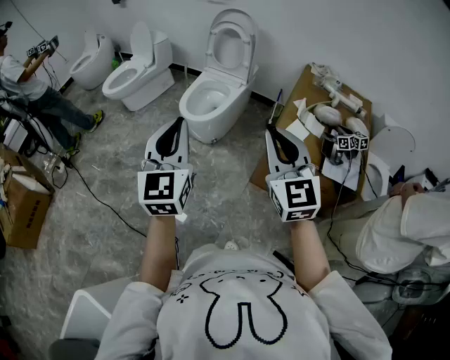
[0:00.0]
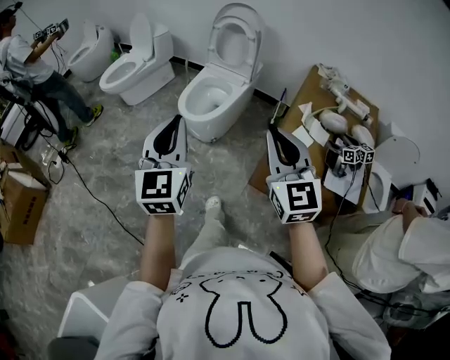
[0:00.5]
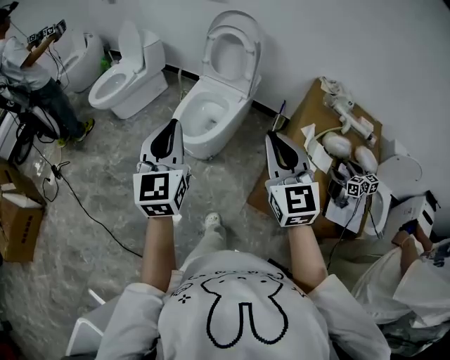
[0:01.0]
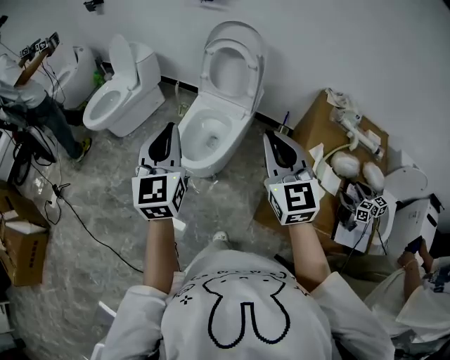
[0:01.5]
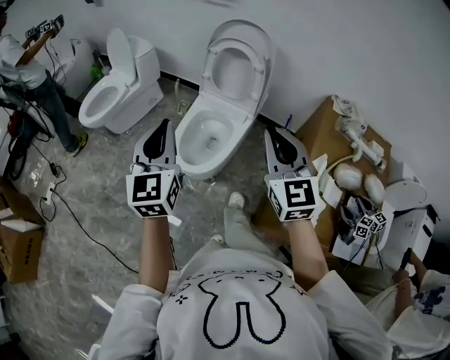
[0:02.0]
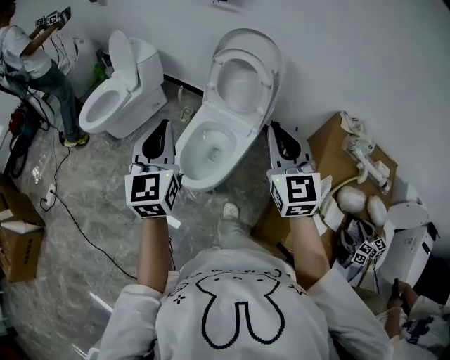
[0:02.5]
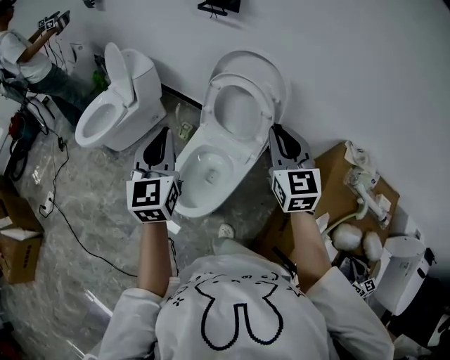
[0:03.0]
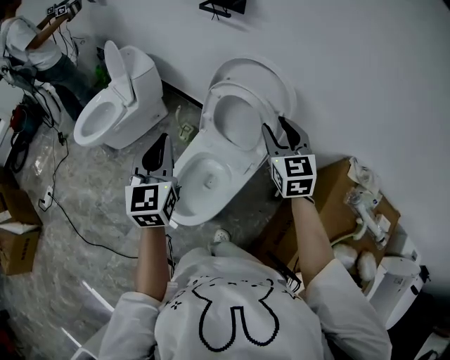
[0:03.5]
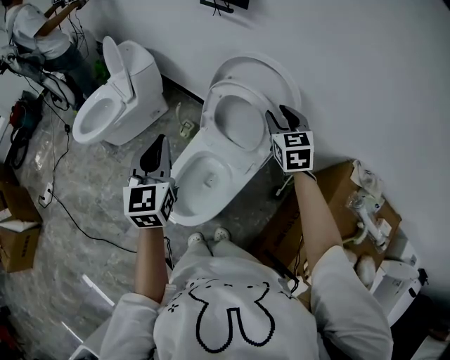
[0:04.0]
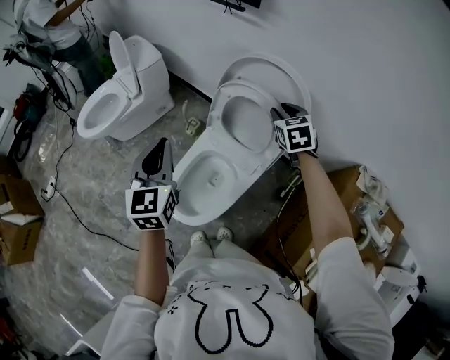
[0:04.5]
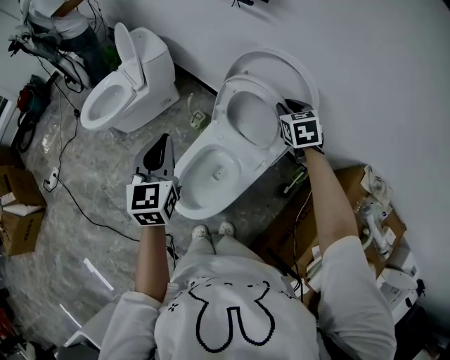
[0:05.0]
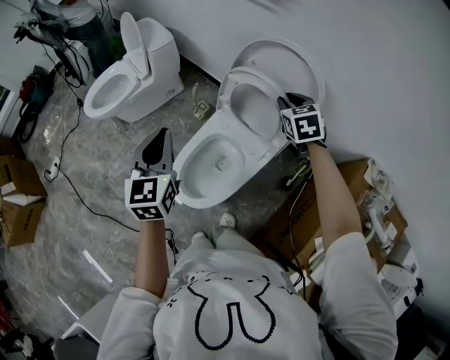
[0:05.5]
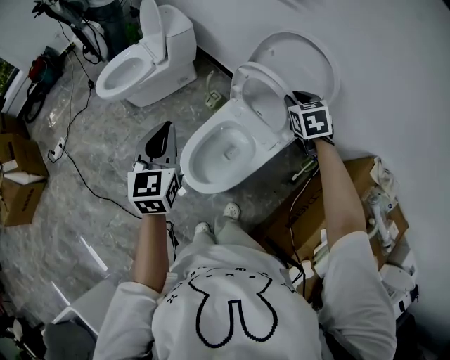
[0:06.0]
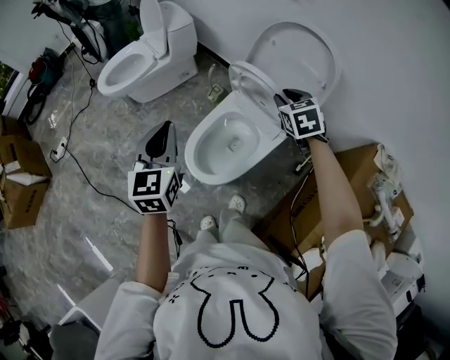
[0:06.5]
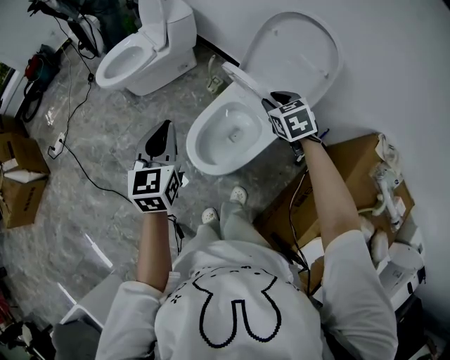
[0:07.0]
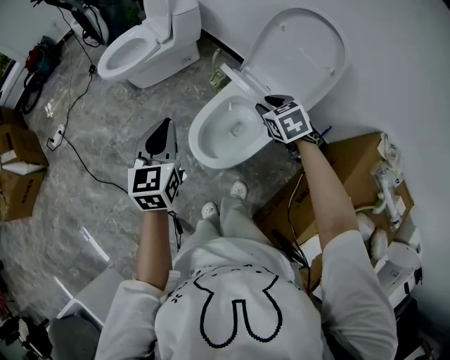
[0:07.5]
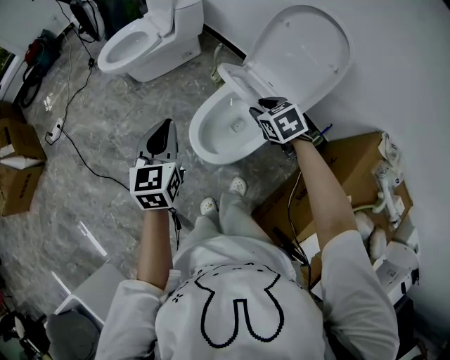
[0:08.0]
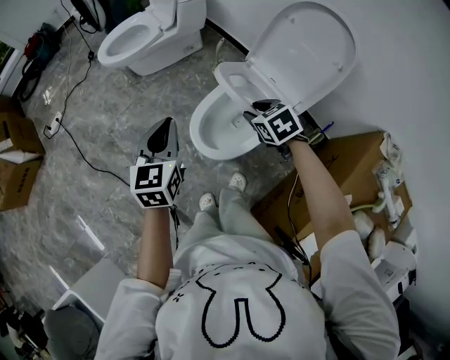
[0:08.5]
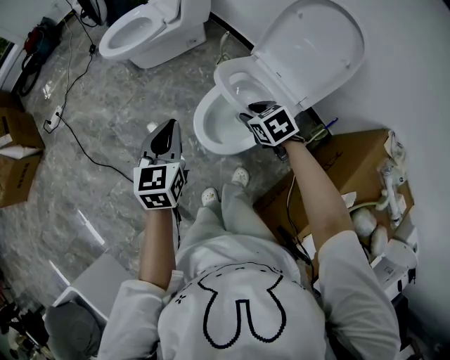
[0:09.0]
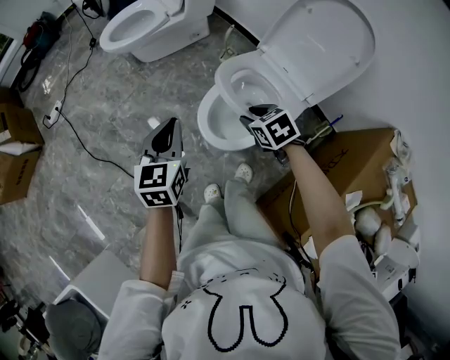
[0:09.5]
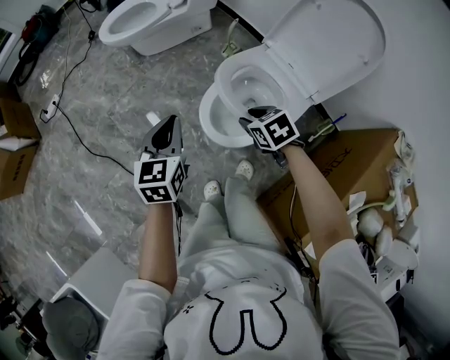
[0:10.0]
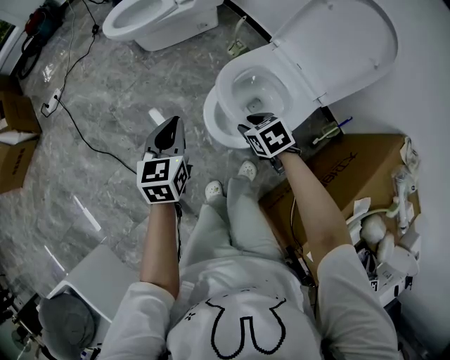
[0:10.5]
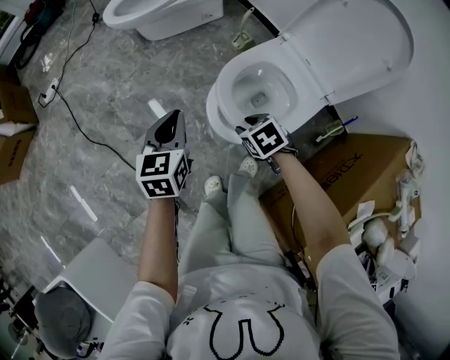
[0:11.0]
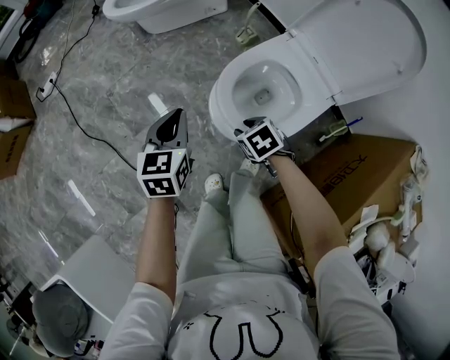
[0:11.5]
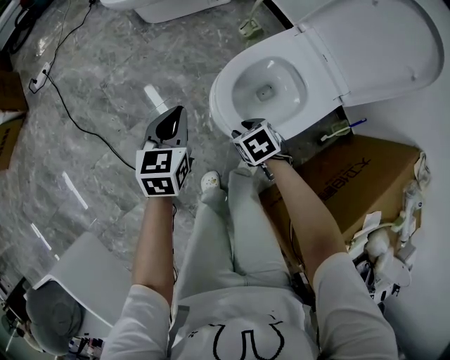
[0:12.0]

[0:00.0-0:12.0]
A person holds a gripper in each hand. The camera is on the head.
0:00.0 to 0:02.0: Both grippers are carried forward, some 50 cm.
0:02.0 to 0:04.0: The left gripper goes approximately 30 cm forward, while the right gripper moves forward, about 50 cm, rotates roughly 20 degrees, and opens up.
0:04.0 to 0:06.0: The left gripper is displaced to the left and backward by some 10 cm. Meanwhile the right gripper is displaced to the left by about 5 cm.
0:06.0 to 0:08.0: The left gripper is displaced to the left, backward and downward by about 10 cm, while the right gripper is displaced to the left and backward by approximately 20 cm, and swivels some 20 degrees.
0:08.0 to 0:10.0: The right gripper moves to the left and downward, roughly 15 cm, while the left gripper is displaced downward and to the left by about 10 cm.
0:10.0 to 0:12.0: The right gripper heads downward and to the left, covering some 20 cm. The left gripper shifts about 15 cm downward.

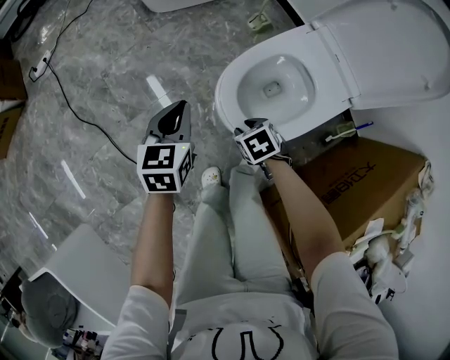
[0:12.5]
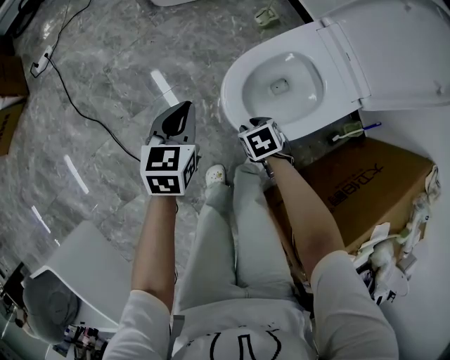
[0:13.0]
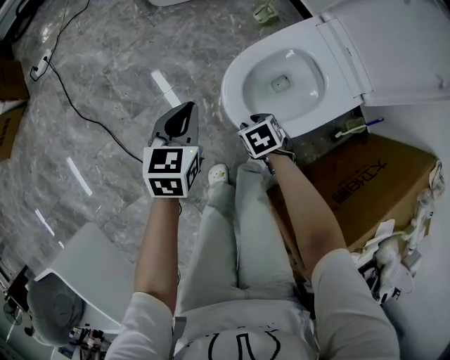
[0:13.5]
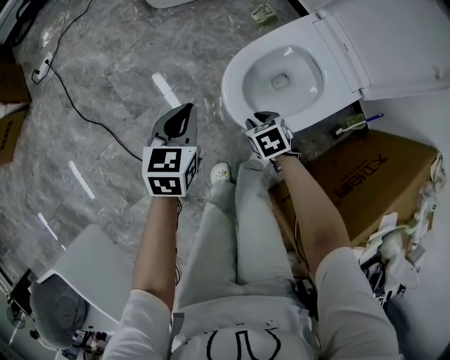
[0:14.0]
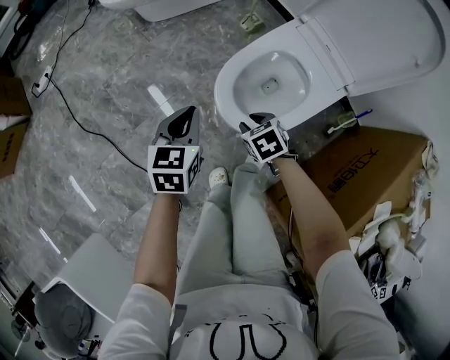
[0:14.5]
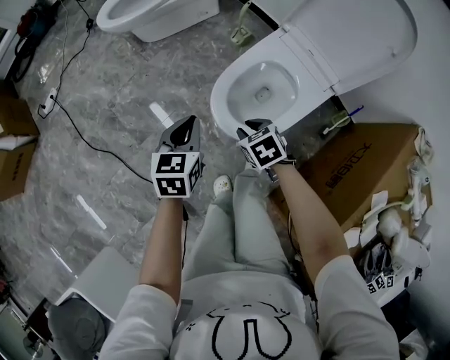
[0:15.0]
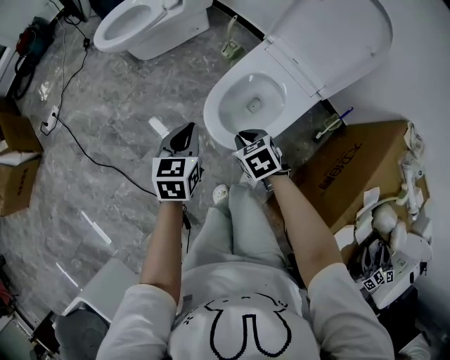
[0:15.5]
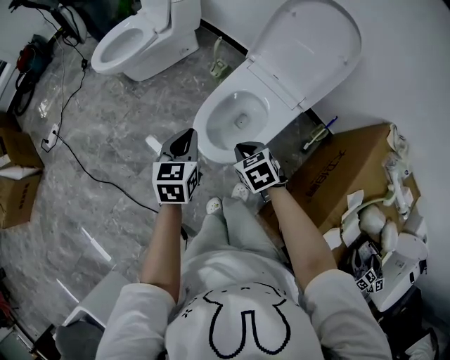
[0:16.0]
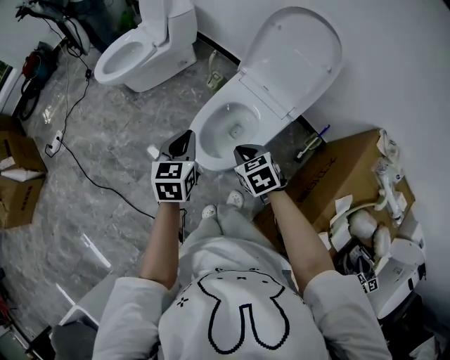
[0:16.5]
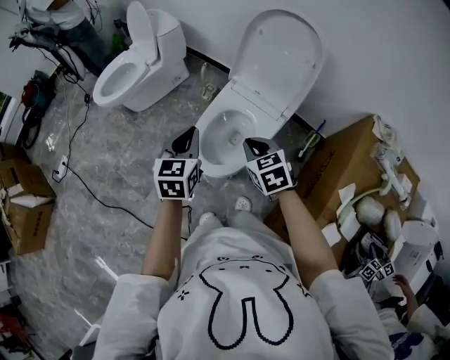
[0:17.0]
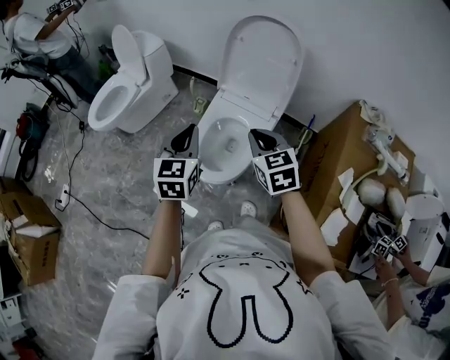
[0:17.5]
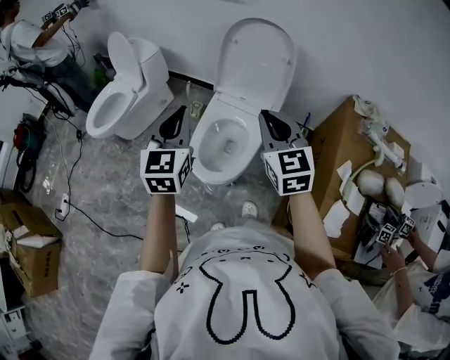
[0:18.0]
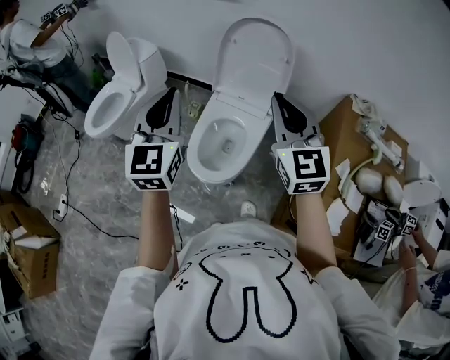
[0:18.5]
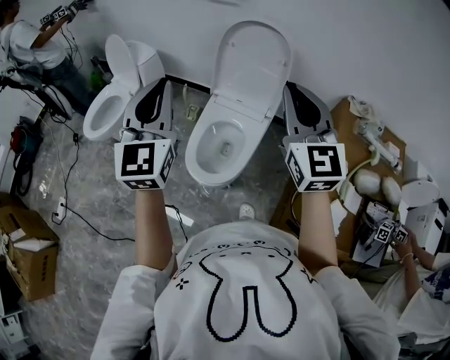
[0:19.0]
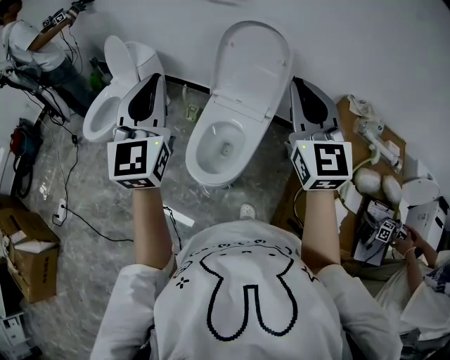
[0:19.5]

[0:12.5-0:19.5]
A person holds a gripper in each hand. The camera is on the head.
0:12.5 to 0:14.5: The grippers stay close to where they were, moving slightly.
0:14.5 to 0:16.0: The right gripper goes some 20 cm upward, and closes up. Meanwhile the left gripper shifts some 15 cm upward and to the right.
0:16.0 to 0:17.5: Both grippers travel together upward and to the right, some 20 cm. The right gripper changes its angle by approximately 30 degrees; the left gripper turns by roughly 20 degrees.
0:17.5 to 0:19.5: Both grippers move upward, about 25 cm. The left gripper rotates roughly 30 degrees, while the right gripper points its fingers roughly 40 degrees further upward.

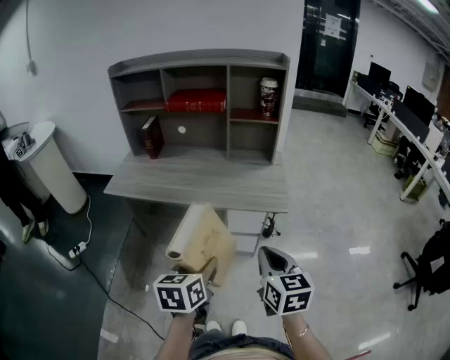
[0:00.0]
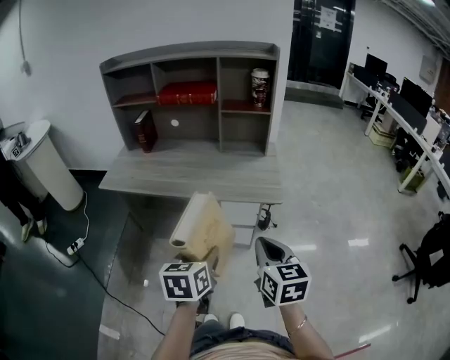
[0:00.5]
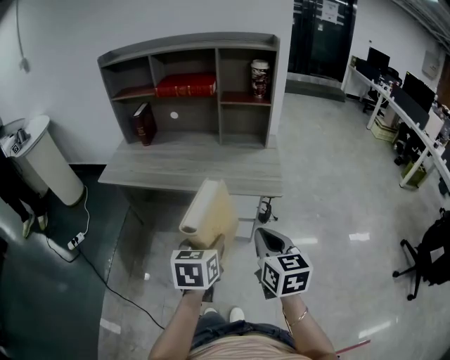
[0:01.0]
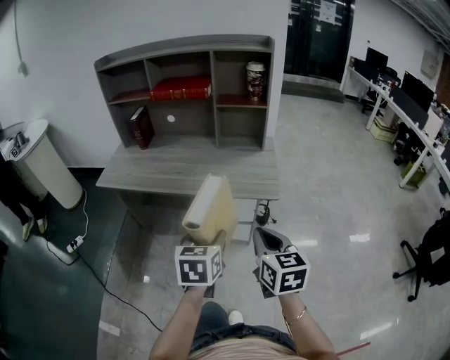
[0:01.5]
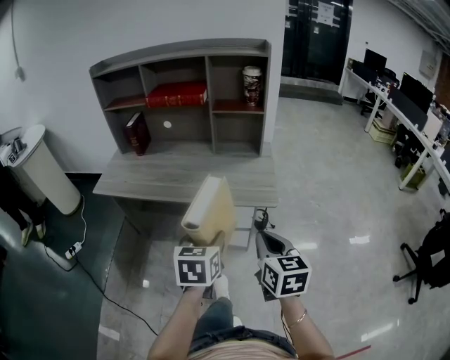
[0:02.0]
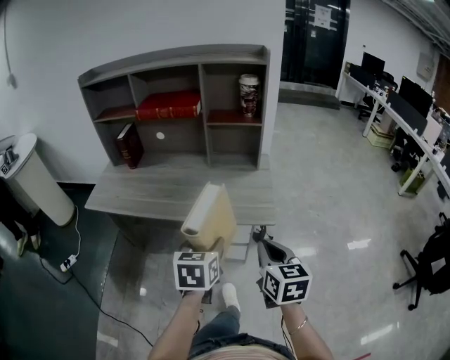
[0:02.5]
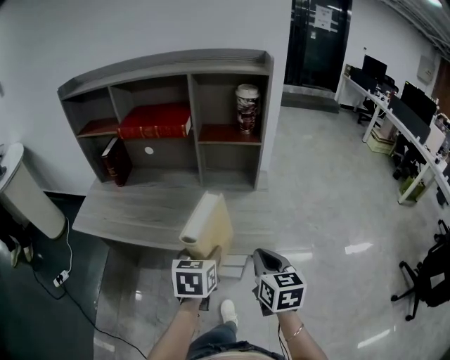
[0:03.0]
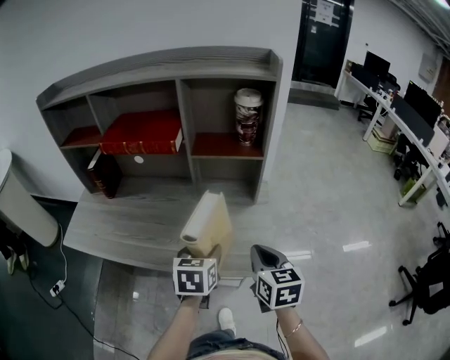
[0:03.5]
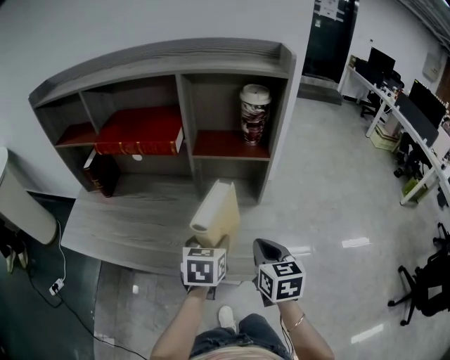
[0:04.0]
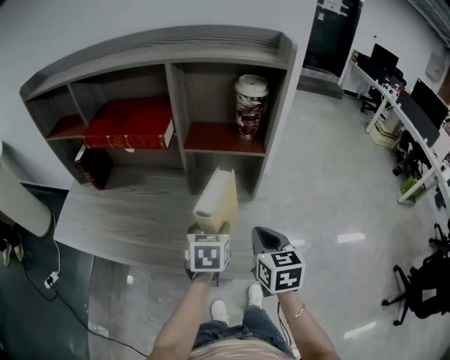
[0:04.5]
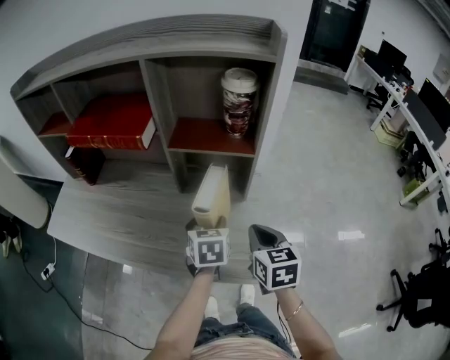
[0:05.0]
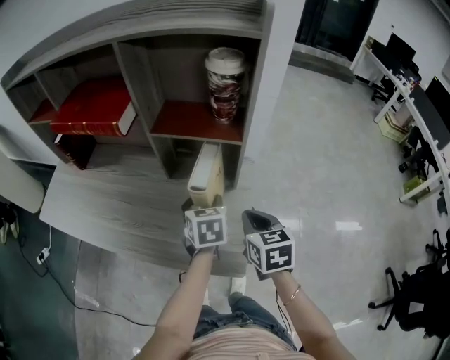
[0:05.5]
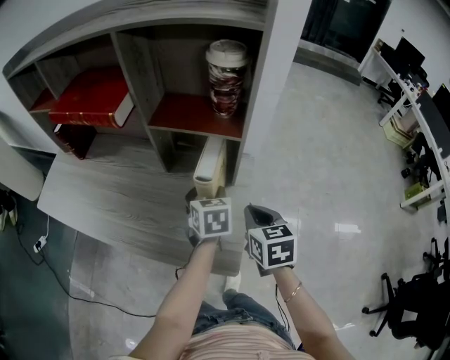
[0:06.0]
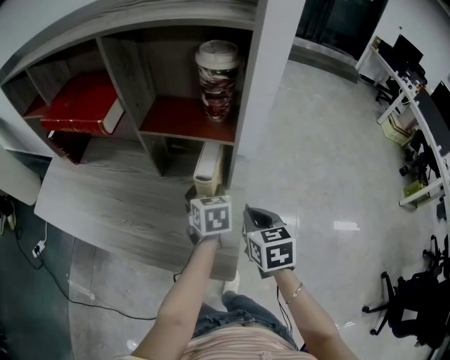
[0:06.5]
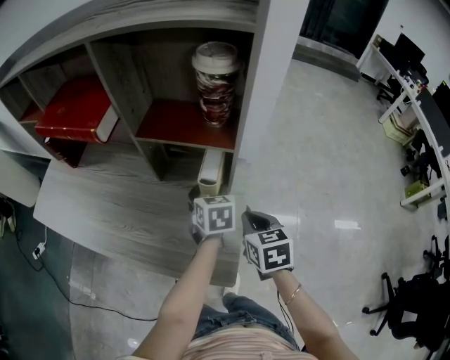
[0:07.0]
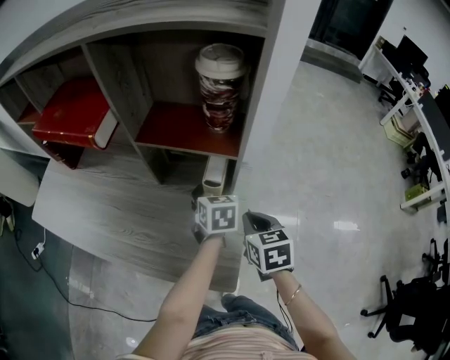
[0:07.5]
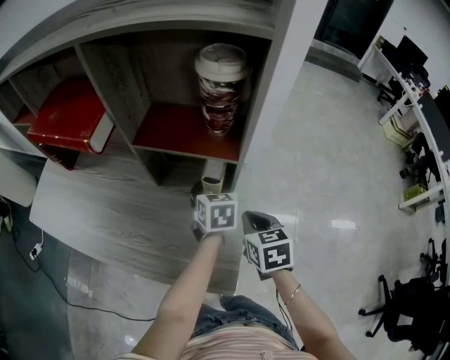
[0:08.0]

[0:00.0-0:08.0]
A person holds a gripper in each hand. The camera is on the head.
0:00.0 to 0:02.0: The left gripper heads forward and to the right, covering roughly 10 cm; the right gripper is displaced to the right and forward by roughly 10 cm.
0:02.0 to 0:04.0: Both grippers move forward, about 35 cm.
0:04.0 to 0:06.0: The right gripper is displaced to the right and forward by roughly 15 cm. The left gripper shifts approximately 20 cm forward, to the right and downward.
0:06.0 to 0:08.0: The left gripper shifts roughly 10 cm forward; the right gripper heads forward, covering approximately 5 cm.
